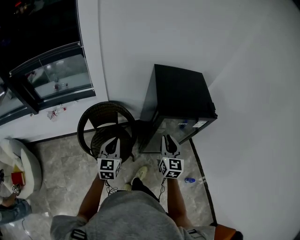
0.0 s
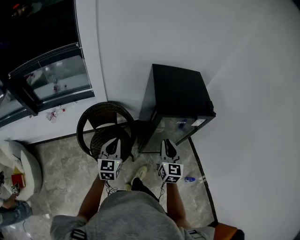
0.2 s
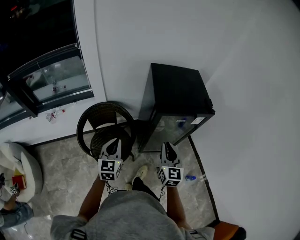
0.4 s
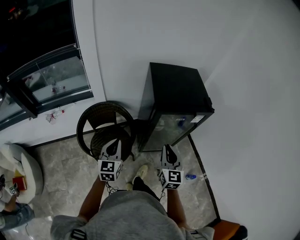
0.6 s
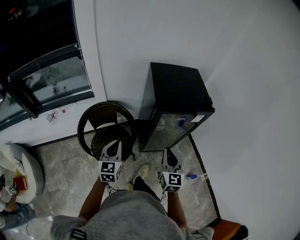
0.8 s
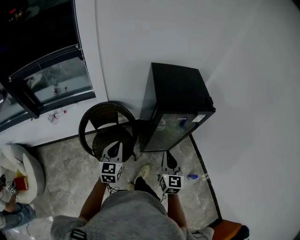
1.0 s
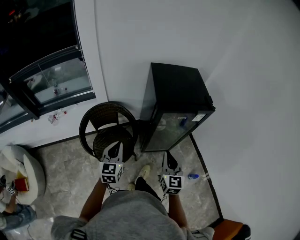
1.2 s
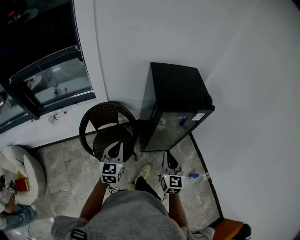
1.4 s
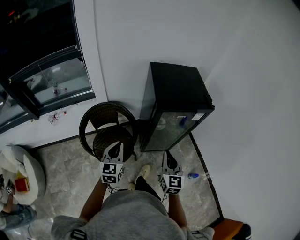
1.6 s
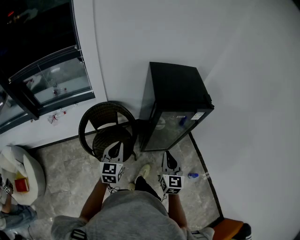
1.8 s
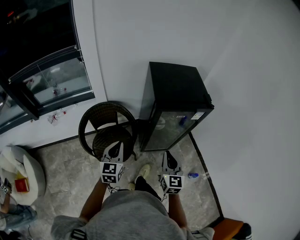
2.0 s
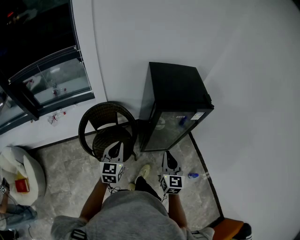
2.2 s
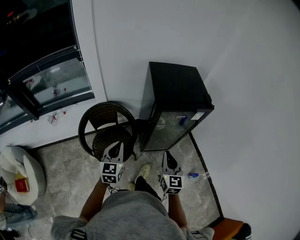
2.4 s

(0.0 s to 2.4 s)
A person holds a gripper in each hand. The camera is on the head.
0.0 s - 1.2 s: The right gripper is displaced backward by roughly 10 cm.
1.2 s - 2.4 s: Neither gripper changes place.

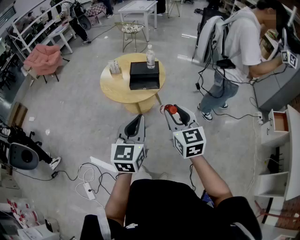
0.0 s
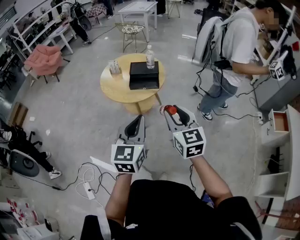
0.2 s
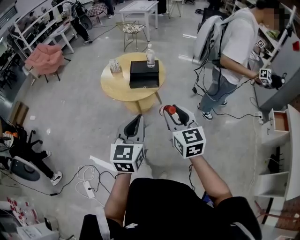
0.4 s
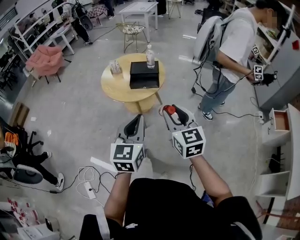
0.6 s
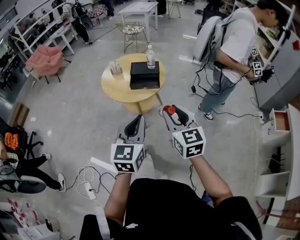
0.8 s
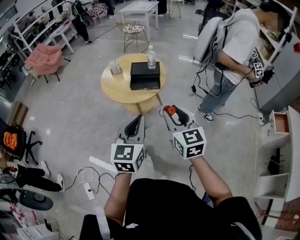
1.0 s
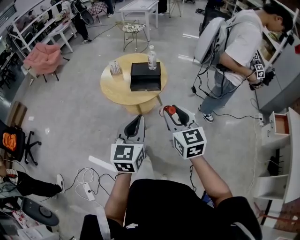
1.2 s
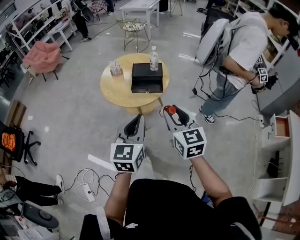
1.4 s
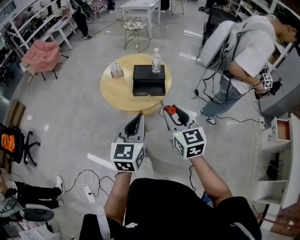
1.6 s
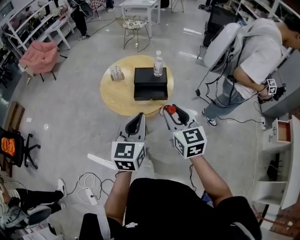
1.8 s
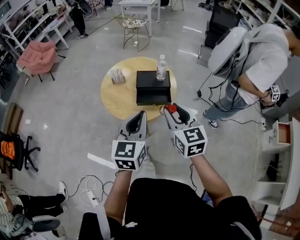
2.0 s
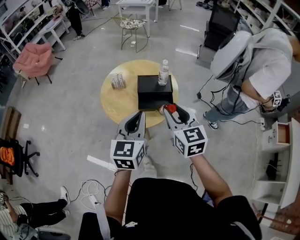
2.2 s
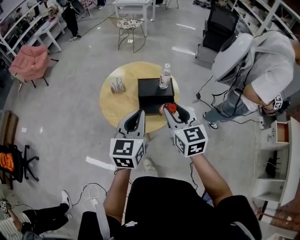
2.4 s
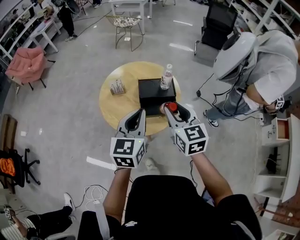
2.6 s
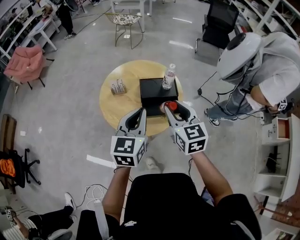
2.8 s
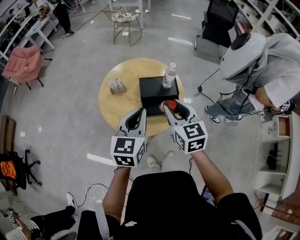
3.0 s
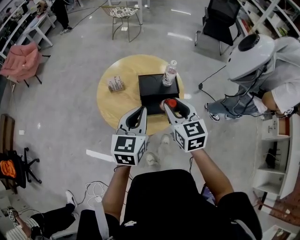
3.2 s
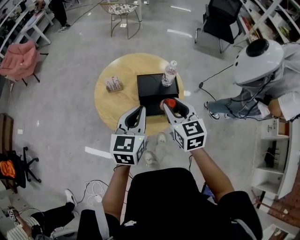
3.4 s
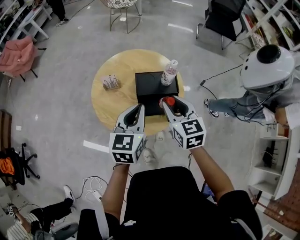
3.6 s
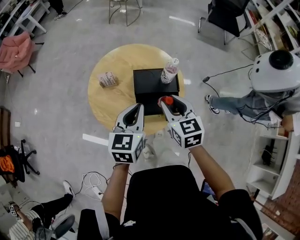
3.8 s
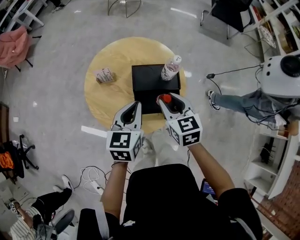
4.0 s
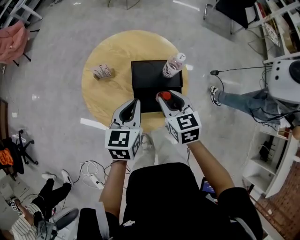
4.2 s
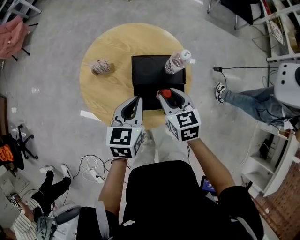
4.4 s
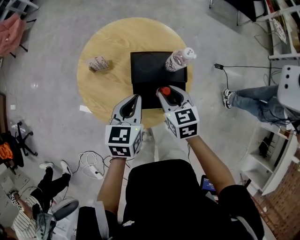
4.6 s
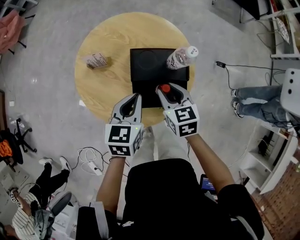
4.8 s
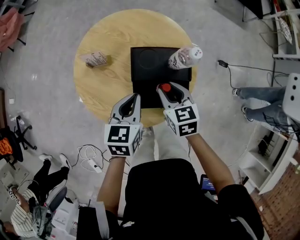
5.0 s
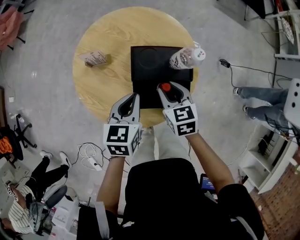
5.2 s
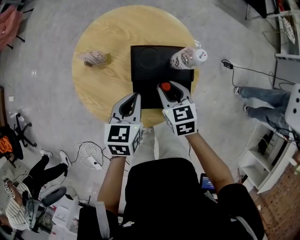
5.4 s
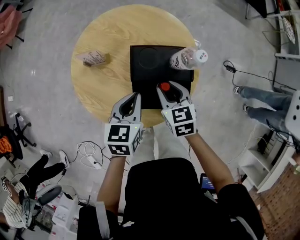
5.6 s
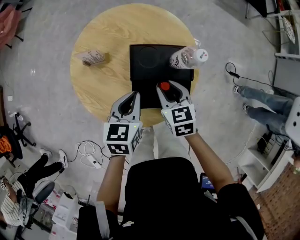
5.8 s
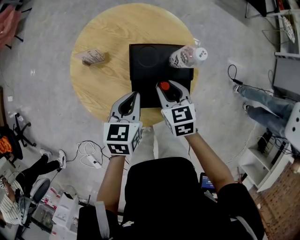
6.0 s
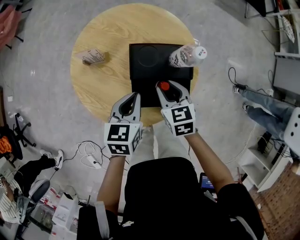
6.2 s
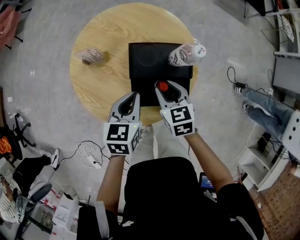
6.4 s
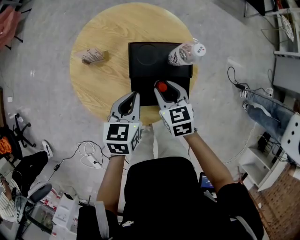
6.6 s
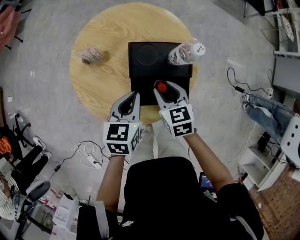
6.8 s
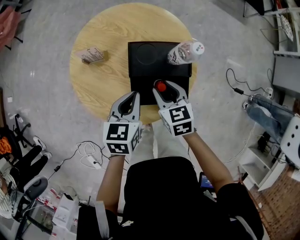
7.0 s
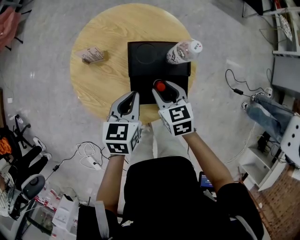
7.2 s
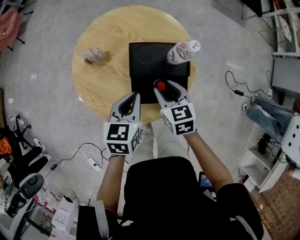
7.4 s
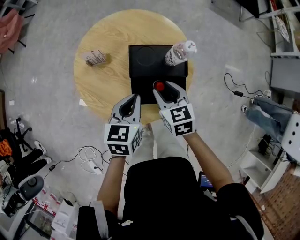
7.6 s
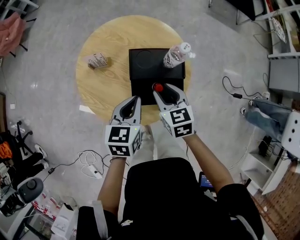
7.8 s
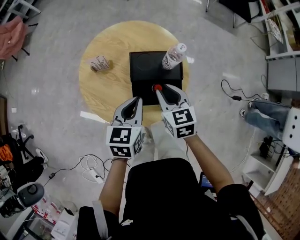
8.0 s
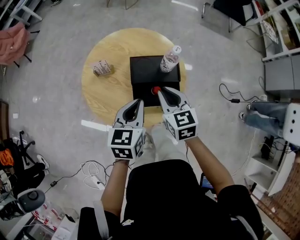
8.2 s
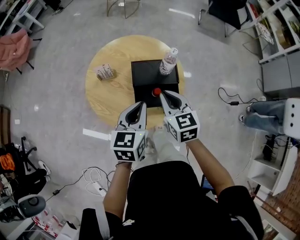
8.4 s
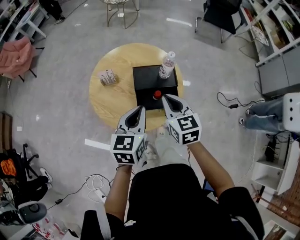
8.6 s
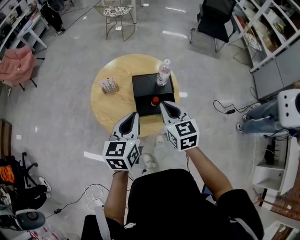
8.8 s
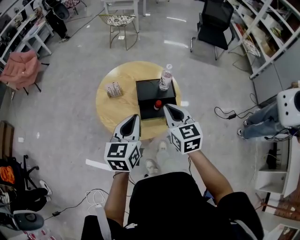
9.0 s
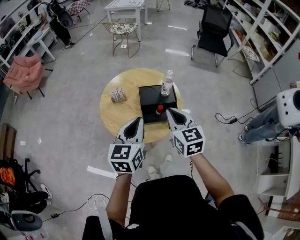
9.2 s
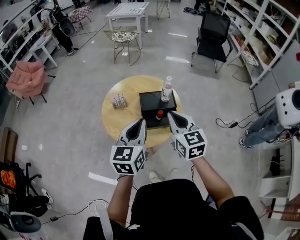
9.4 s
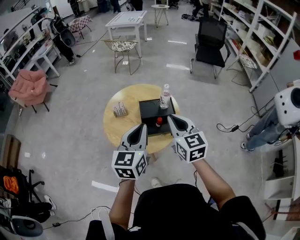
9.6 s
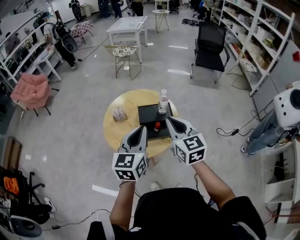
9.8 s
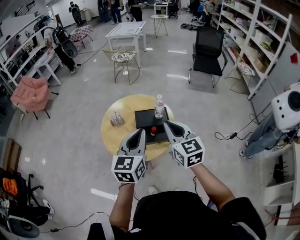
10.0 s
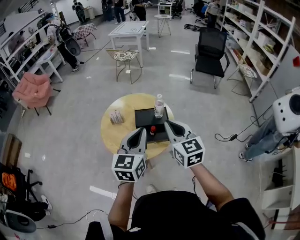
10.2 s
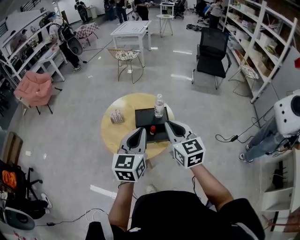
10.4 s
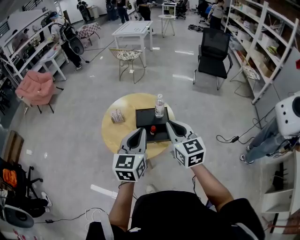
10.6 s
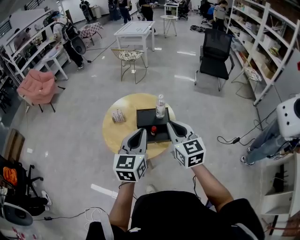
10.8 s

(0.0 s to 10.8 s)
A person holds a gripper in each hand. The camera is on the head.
0.0 s - 1.6 s: Both grippers travel together forward, approximately 10 cm.
1.6 s - 3.0 s: The right gripper travels forward and to the left by approximately 30 cm, while the left gripper shifts roughly 25 cm forward.
3.0 s - 4.6 s: Both grippers move downward and forward, about 25 cm. The right gripper swivels about 20 degrees. The left gripper swivels about 20 degrees.
4.6 s - 6.2 s: Both grippers move downward, some 5 cm.
6.2 s - 7.8 s: The two grippers go about 5 cm upward.
7.8 s - 9.2 s: The two grippers go about 25 cm upward and backward. The left gripper rotates roughly 20 degrees; the right gripper changes its angle by roughly 20 degrees, and closes its fingers.
9.2 s - 10.8 s: The right gripper shifts roughly 10 cm upward and to the right. Meanwhile the left gripper travels to the right and upward by about 10 cm.

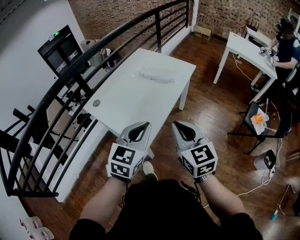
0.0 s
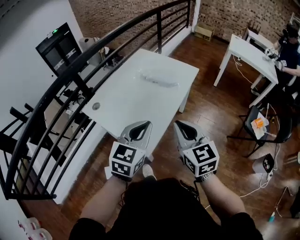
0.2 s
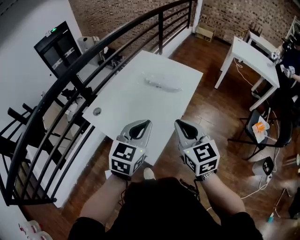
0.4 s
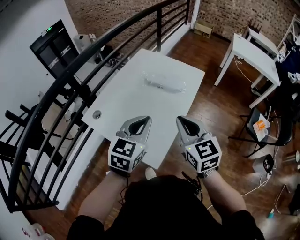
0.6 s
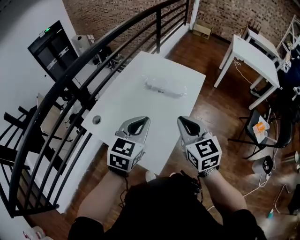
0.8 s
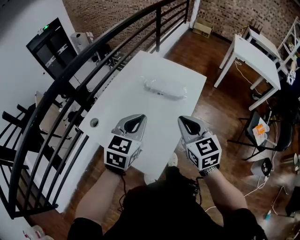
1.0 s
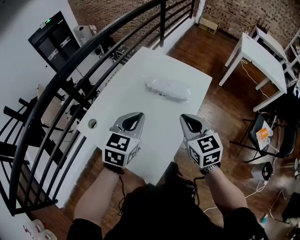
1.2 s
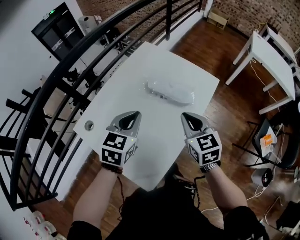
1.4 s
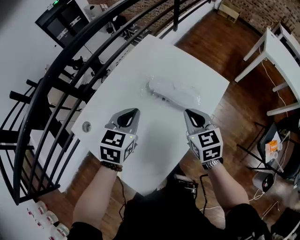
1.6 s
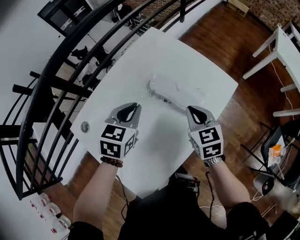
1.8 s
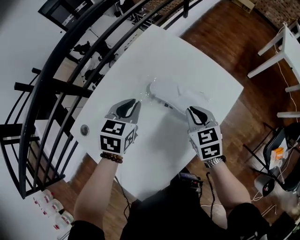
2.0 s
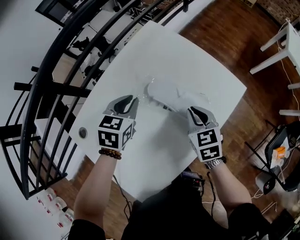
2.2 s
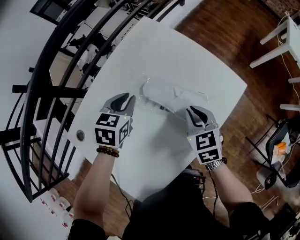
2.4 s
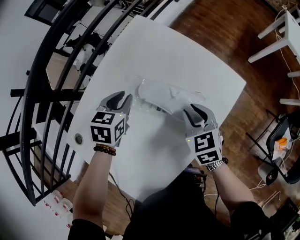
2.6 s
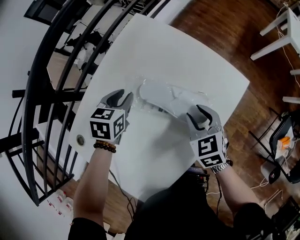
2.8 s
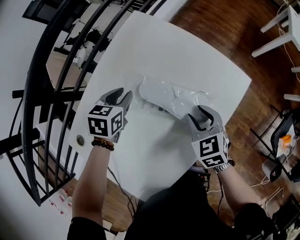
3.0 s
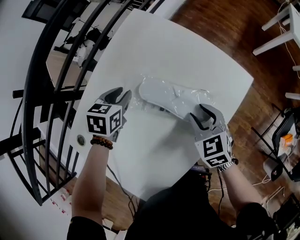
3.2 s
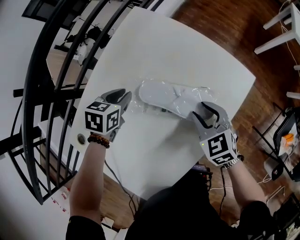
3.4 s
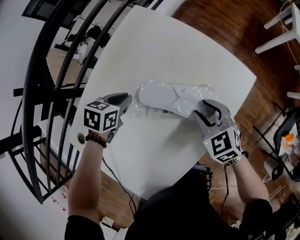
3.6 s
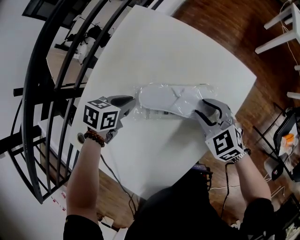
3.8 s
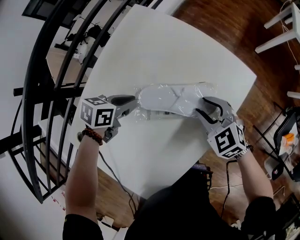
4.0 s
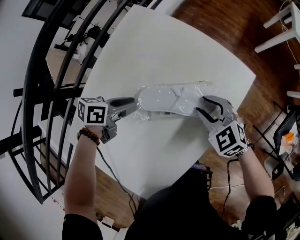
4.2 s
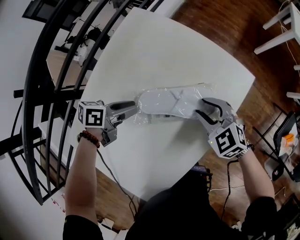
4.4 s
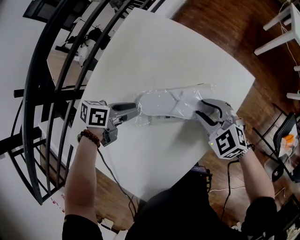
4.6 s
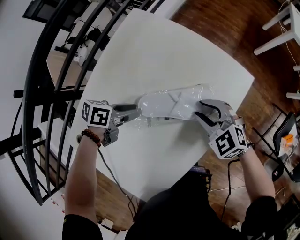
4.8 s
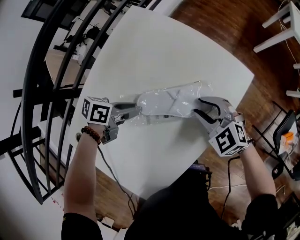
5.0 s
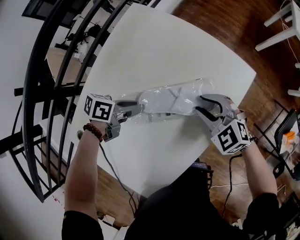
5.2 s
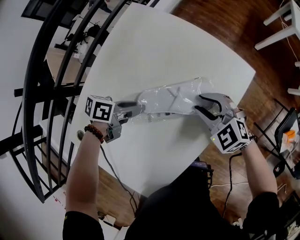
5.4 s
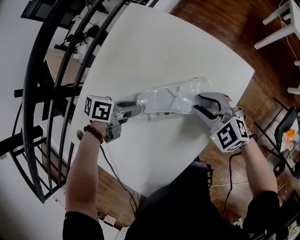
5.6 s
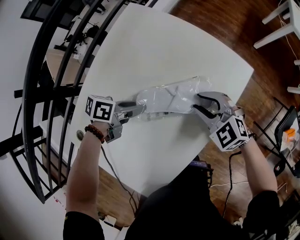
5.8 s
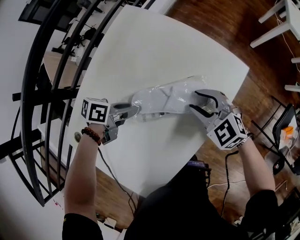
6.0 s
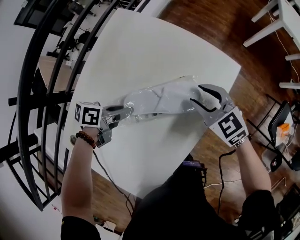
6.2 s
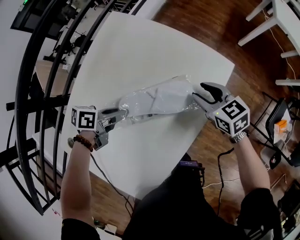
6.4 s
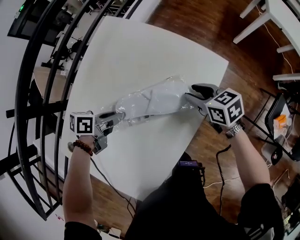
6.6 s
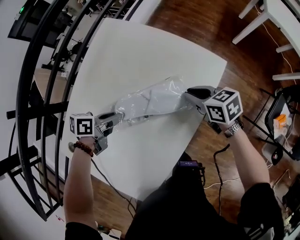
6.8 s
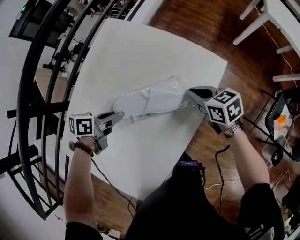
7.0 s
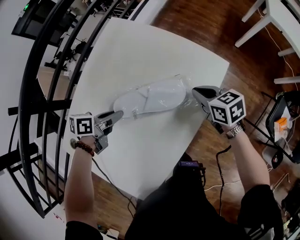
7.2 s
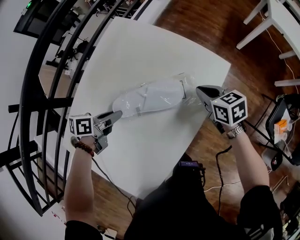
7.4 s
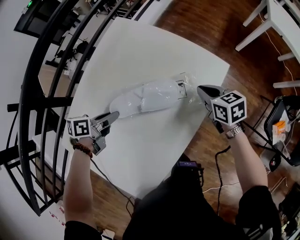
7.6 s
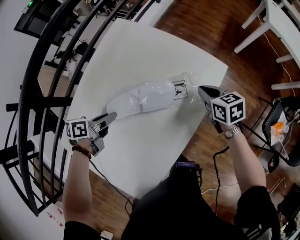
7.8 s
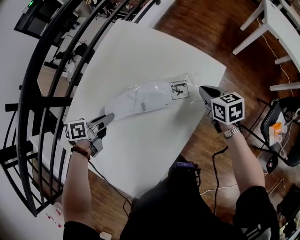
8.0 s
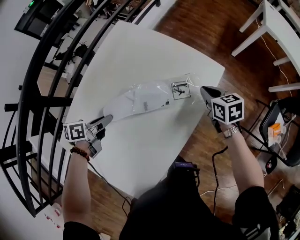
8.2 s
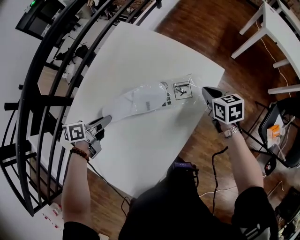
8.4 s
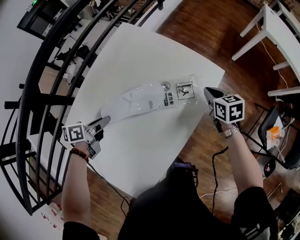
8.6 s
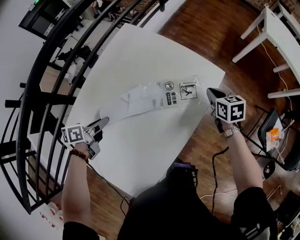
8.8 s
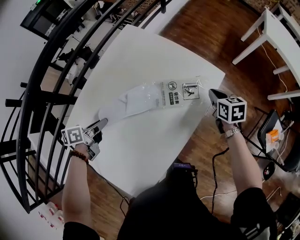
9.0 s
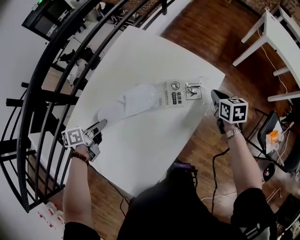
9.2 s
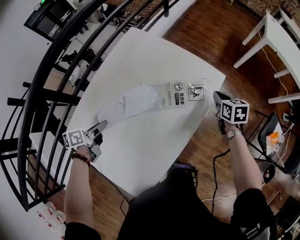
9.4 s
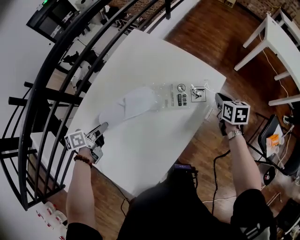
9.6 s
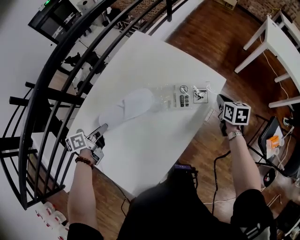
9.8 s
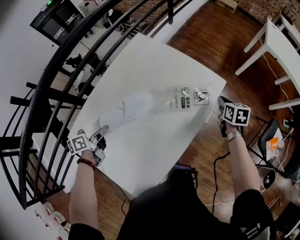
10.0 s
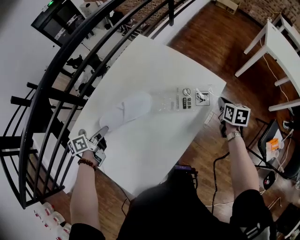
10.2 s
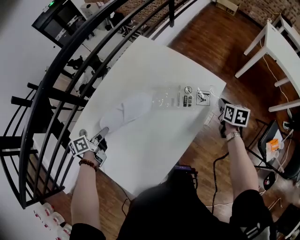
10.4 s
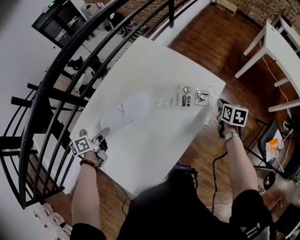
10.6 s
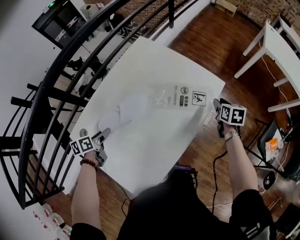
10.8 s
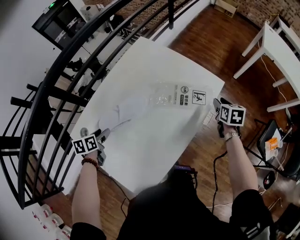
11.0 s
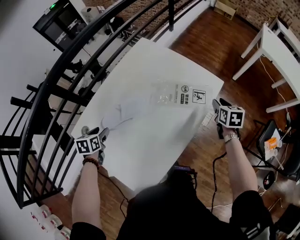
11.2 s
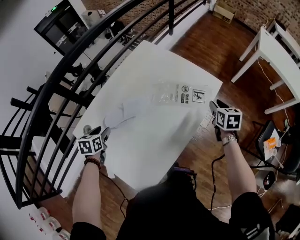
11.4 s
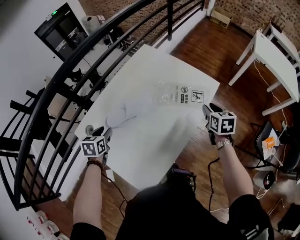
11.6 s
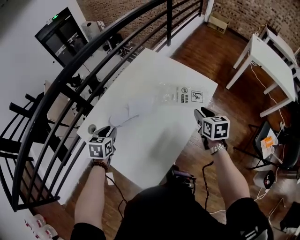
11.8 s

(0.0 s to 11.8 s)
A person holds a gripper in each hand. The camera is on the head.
0.0 s - 1.4 s: The grippers both shift forward by roughly 30 cm.
1.4 s - 3.0 s: The left gripper shifts about 30 cm forward and downward, changes its angle by roughly 30 degrees, and opens its fingers. The right gripper moves downward and forward, some 20 cm, rotates about 20 degrees, and opens up.
3.0 s - 4.4 s: The left gripper moves backward, roughly 5 cm, and changes its angle by about 50 degrees. Meanwhile the right gripper swivels about 20 degrees.
4.4 s - 6.0 s: The grippers move only a little.
6.0 s - 7.4 s: The right gripper ends up some 10 cm from where it was, rotates around the line of its fingers by approximately 50 degrees, clockwise from behind, and closes its fingers.
7.4 s - 8.8 s: The left gripper heads to the left and backward, covering about 10 cm.
8.8 s - 10.4 s: The right gripper travels to the right by about 5 cm, while the left gripper heads backward, covering approximately 5 cm.
10.4 s - 11.8 s: The left gripper is displaced upward and backward by about 5 cm, rotates around the line of its fingers by roughly 50 degrees, clockwise from behind, and opens, then closes again, while the right gripper shifts some 20 cm to the left, backward and upward, and opens up.
